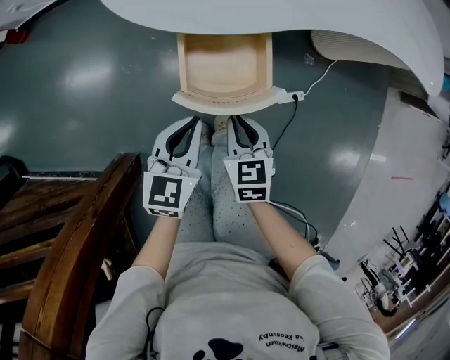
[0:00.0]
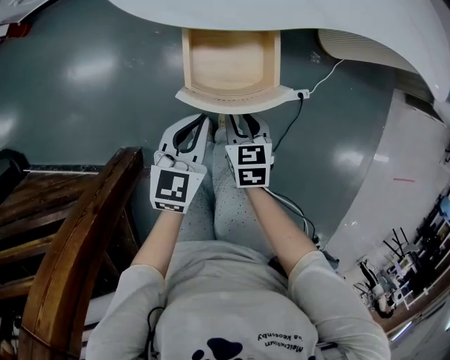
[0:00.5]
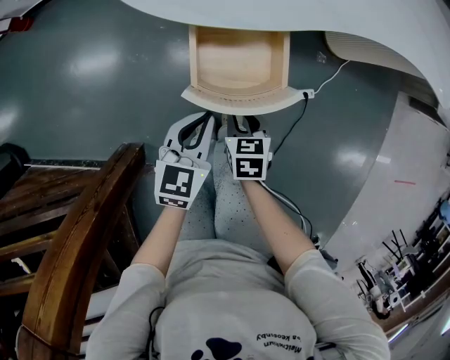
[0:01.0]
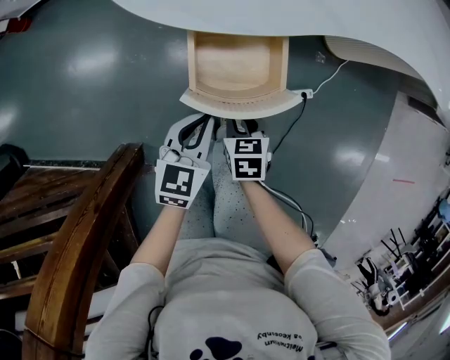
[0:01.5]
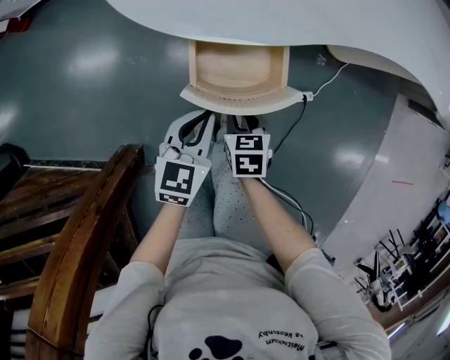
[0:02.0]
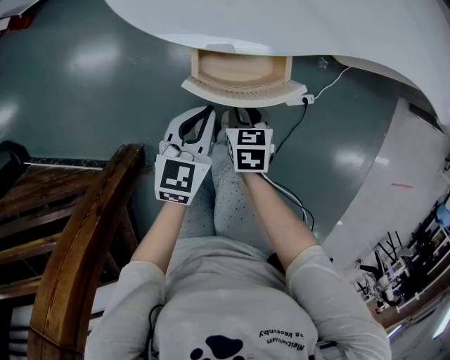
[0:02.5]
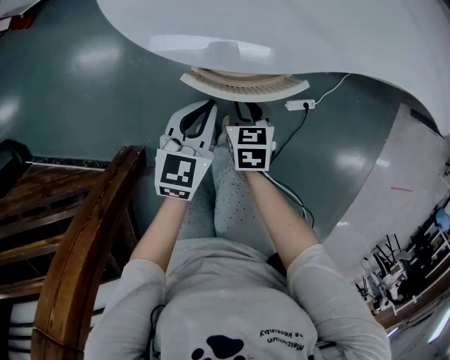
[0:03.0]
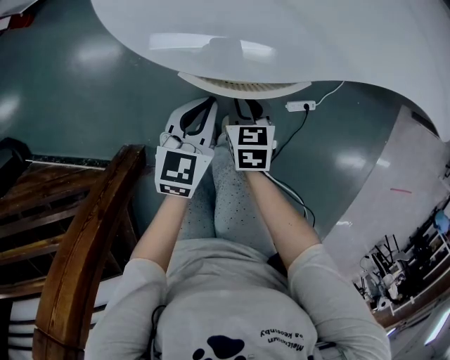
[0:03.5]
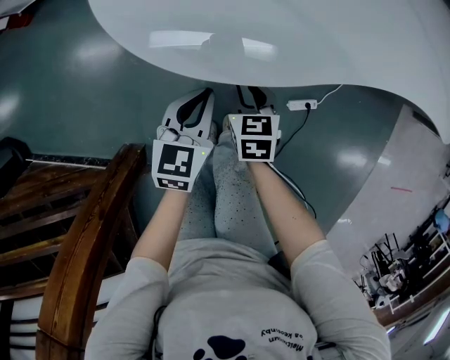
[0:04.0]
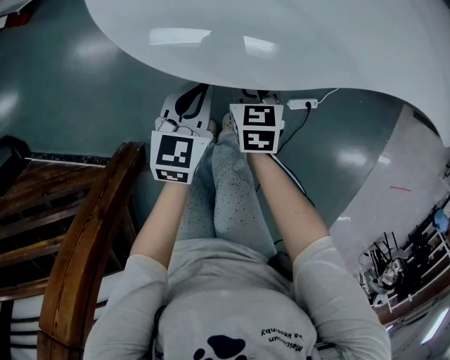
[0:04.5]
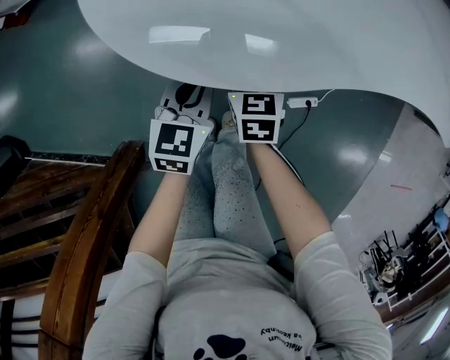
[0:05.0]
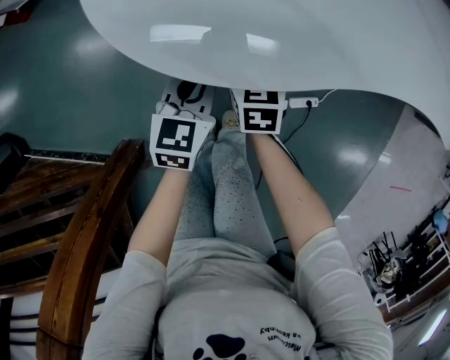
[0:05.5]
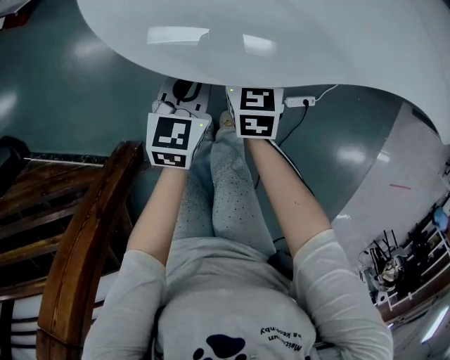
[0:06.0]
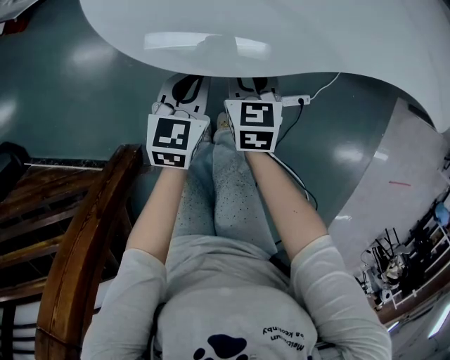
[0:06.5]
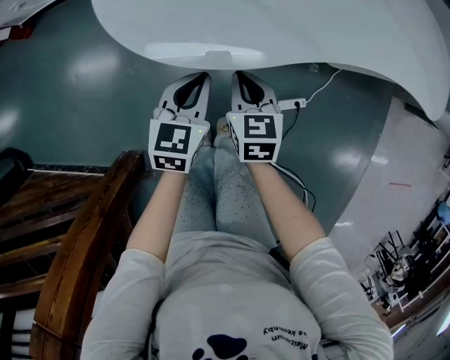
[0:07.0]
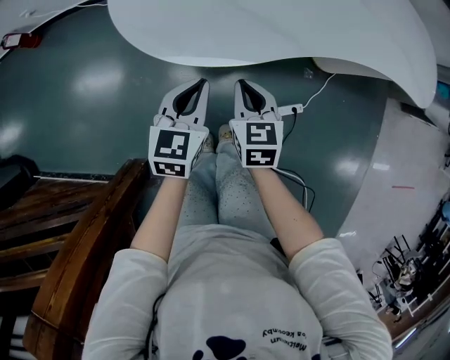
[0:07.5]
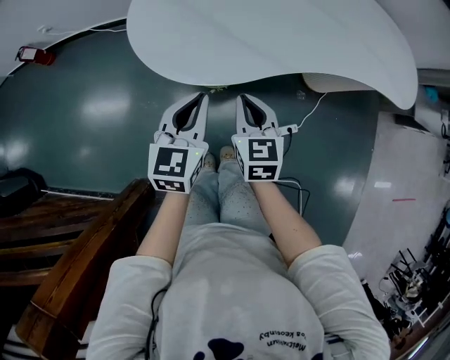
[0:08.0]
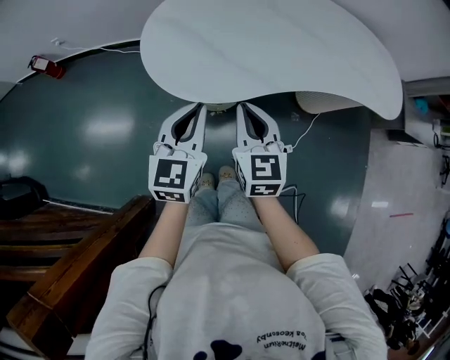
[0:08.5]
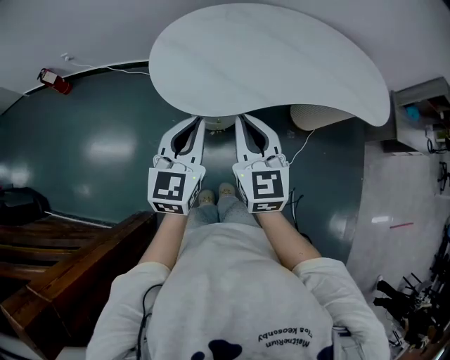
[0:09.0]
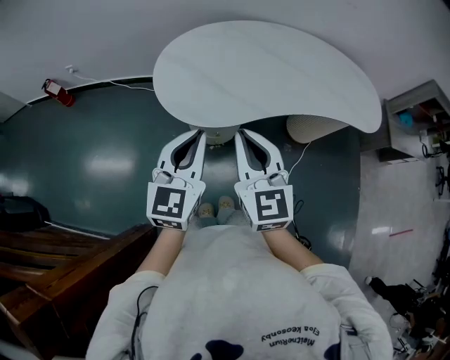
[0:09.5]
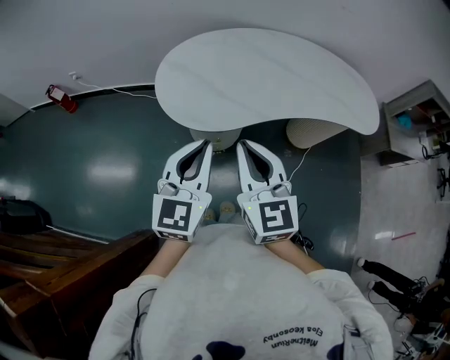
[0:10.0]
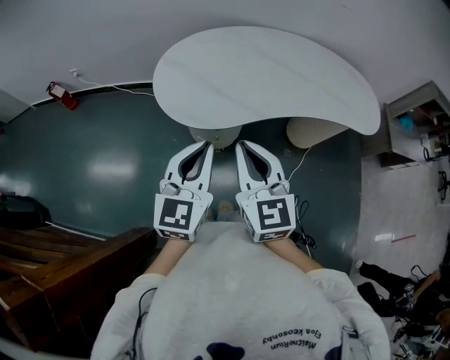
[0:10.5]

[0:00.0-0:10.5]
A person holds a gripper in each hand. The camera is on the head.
0:00.0 to 0:02.0: The right gripper goes approximately 10 cm downward, and opens. Meanwhile the left gripper changes place by about 5 cm.
0:02.0 to 0:04.0: The grippers both shift forward by approximately 10 cm.
0:04.0 to 0:06.5: The right gripper moves upward, approximately 5 cm.
0:06.5 to 0:08.5: Both grippers travel together upward, about 30 cm. The right gripper changes its angle by some 20 degrees, and closes up. The left gripper swivels some 20 degrees.
0:08.5 to 0:10.5: Both grippers move upward and backward, roughly 15 cm.

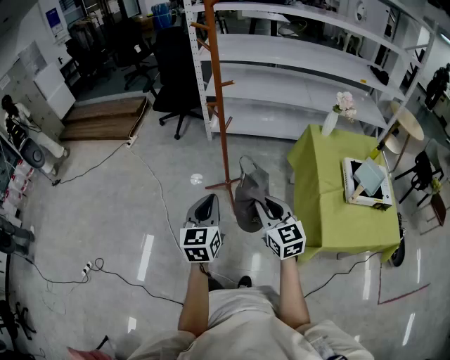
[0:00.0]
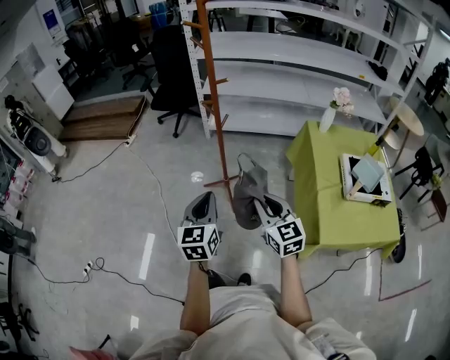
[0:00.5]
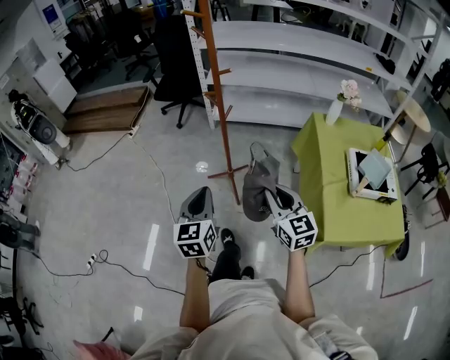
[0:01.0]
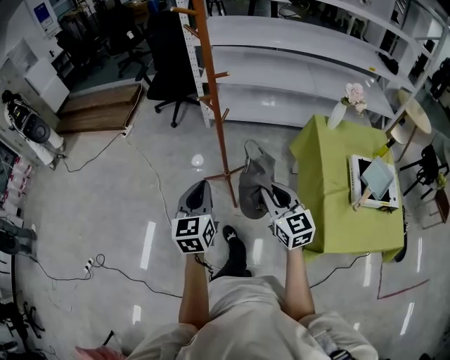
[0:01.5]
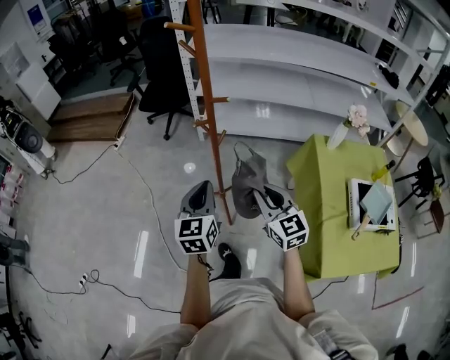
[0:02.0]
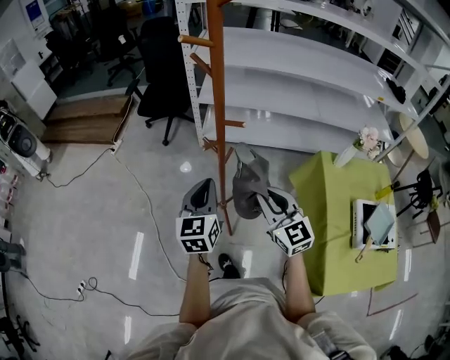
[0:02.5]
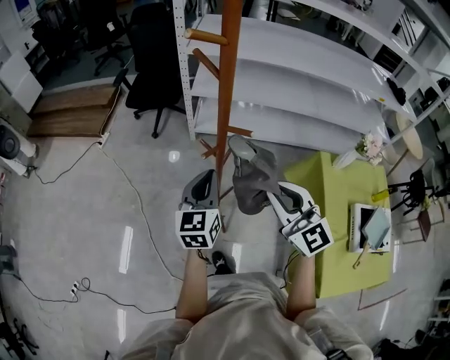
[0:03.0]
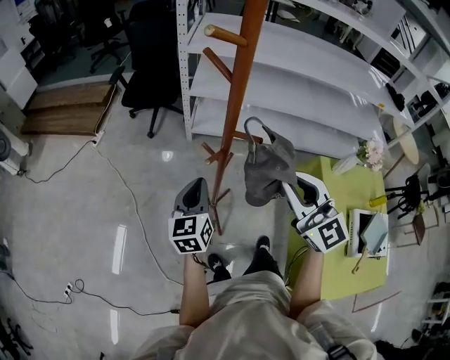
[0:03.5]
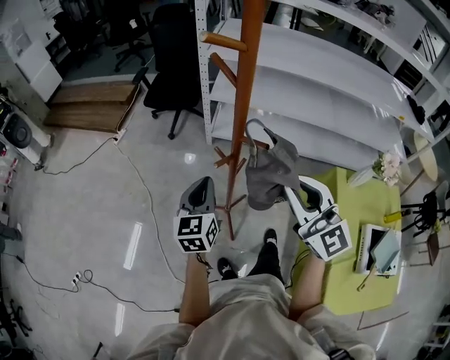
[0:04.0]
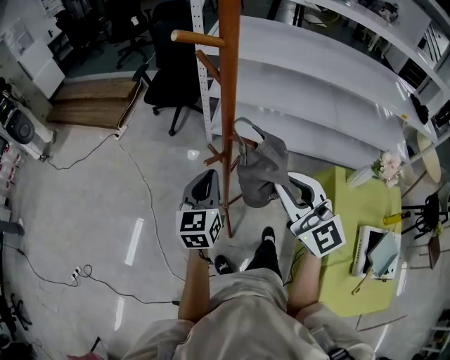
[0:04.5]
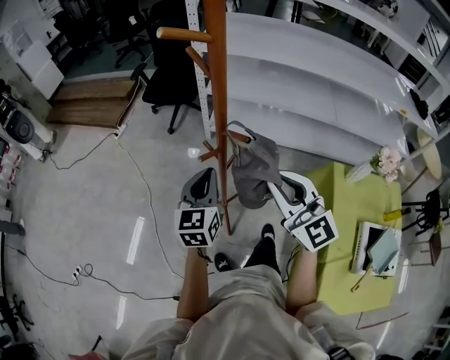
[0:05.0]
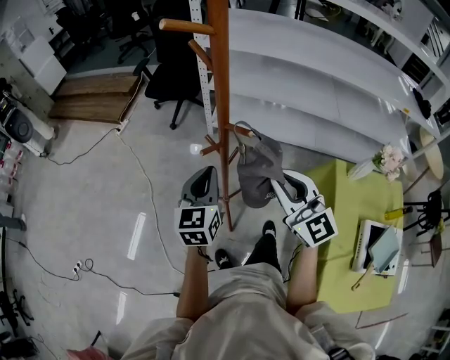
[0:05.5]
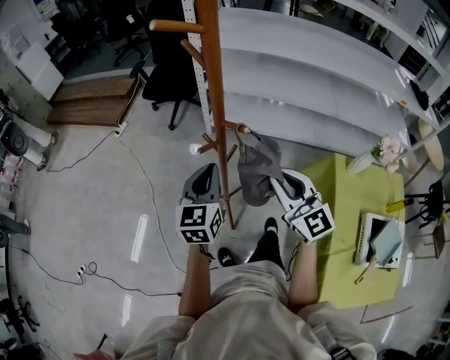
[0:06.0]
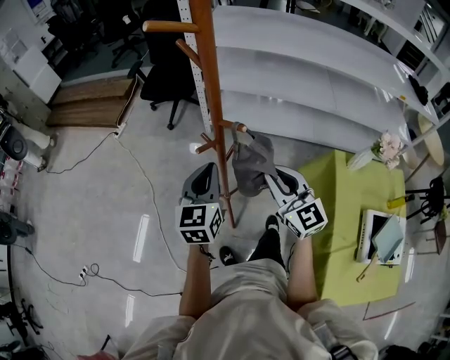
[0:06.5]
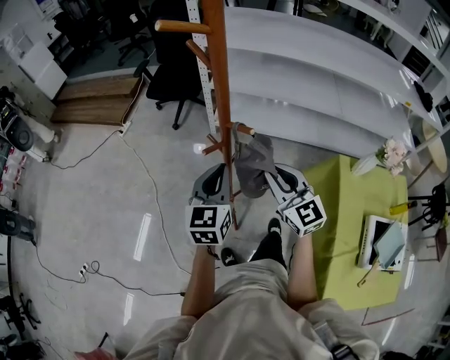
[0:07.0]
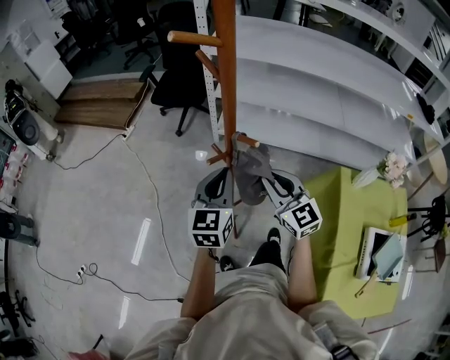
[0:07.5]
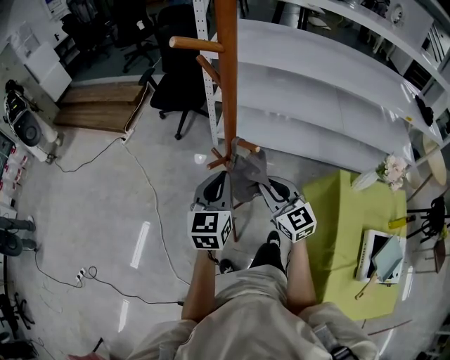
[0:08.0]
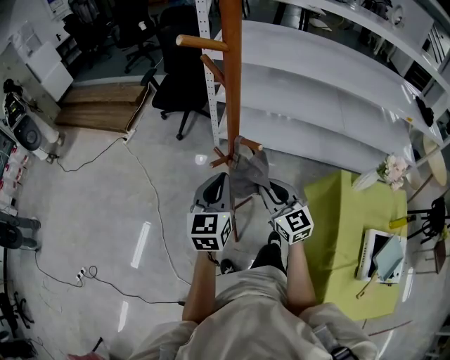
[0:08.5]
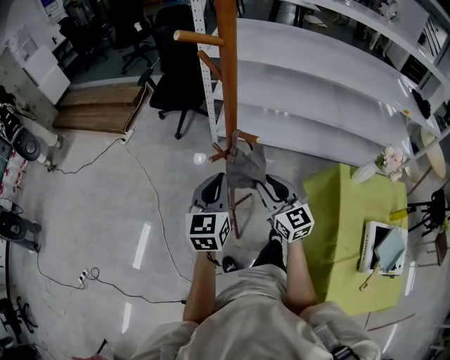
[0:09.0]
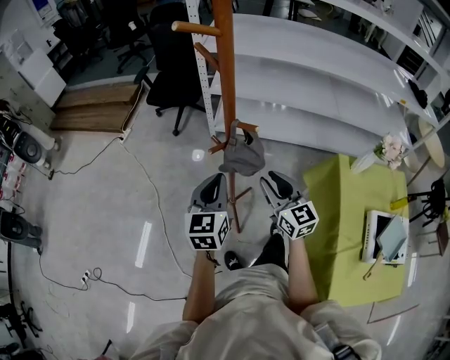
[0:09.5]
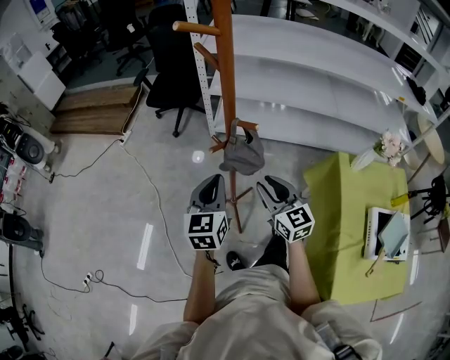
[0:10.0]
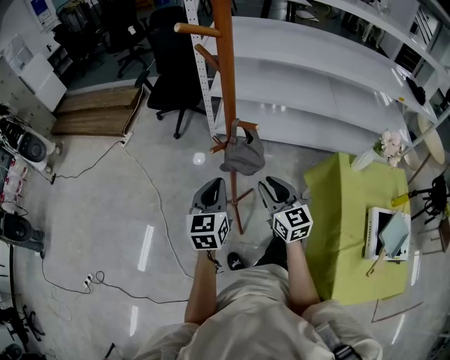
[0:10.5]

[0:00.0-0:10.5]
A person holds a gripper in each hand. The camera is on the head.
0:00.0 to 0:02.0: The two grippers go about 20 cm forward.
0:02.0 to 0:04.0: The right gripper goes about 20 cm upward and forward, and rotates approximately 30 degrees. Meanwhile the left gripper moves forward, roughly 20 cm.
0:04.0 to 0:06.5: The left gripper goes some 5 cm to the right, while the right gripper moves downward, roughly 15 cm.
0:06.5 to 0:08.5: The right gripper goes roughly 5 cm downward.
0:08.5 to 0:10.5: The left gripper moves some 5 cm.

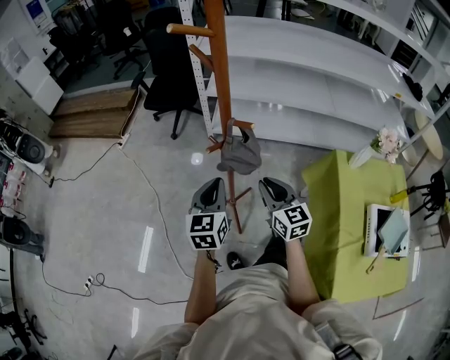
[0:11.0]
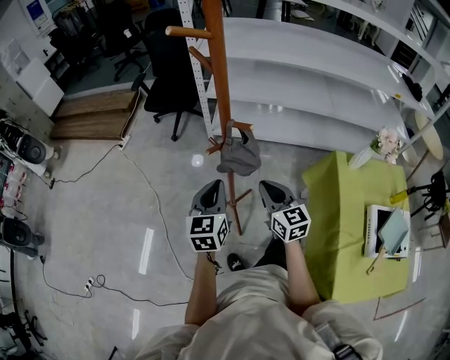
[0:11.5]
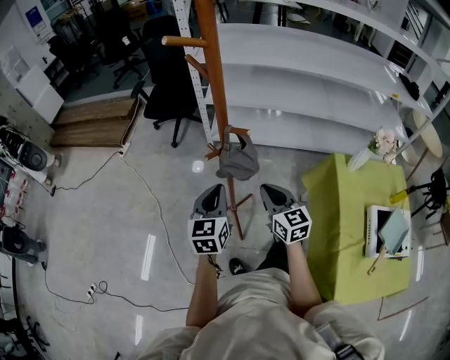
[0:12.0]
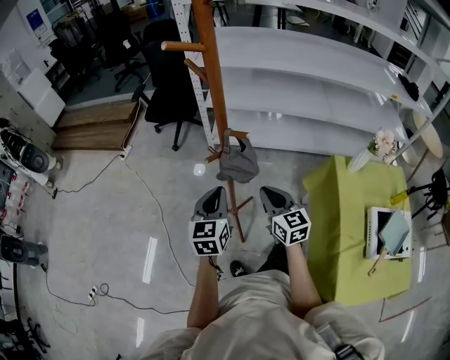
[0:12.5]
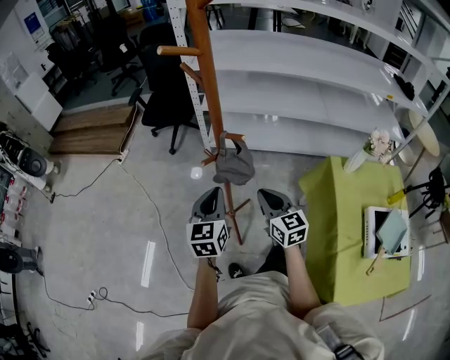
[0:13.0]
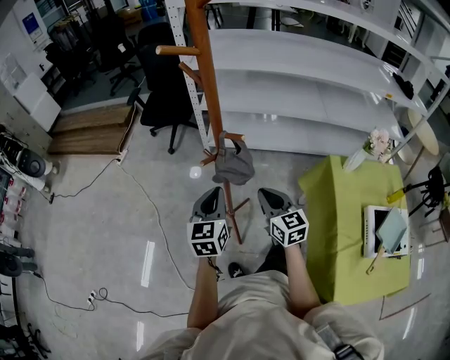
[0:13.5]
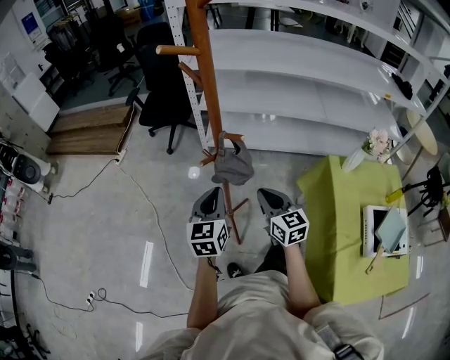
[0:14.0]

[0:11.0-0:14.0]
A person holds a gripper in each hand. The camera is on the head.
0:11.0 to 0:12.5: Both grippers stay about where they are.
0:12.5 to 0:14.0: Both grippers stay about where they are.

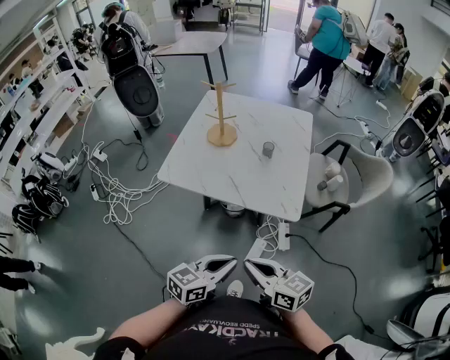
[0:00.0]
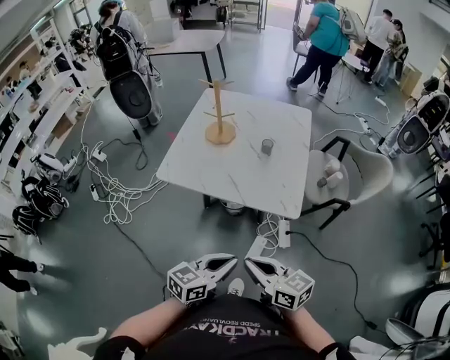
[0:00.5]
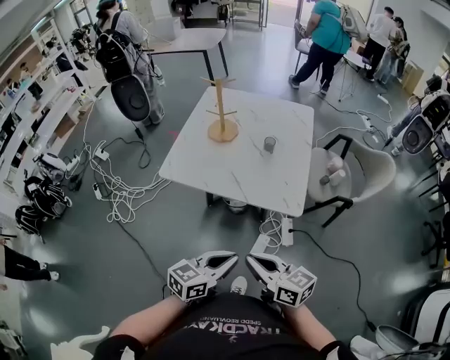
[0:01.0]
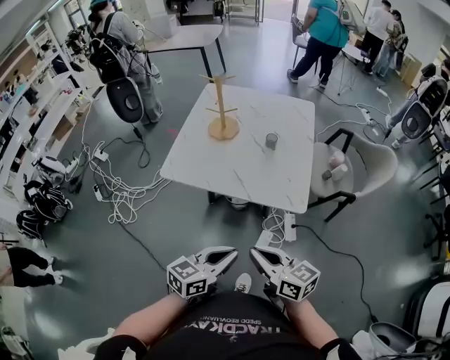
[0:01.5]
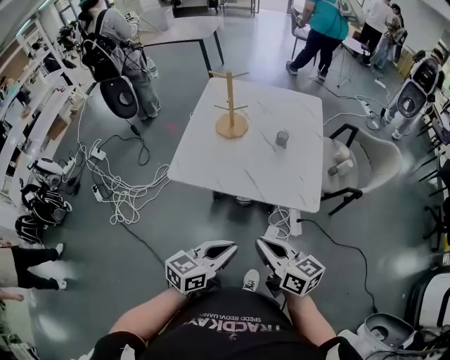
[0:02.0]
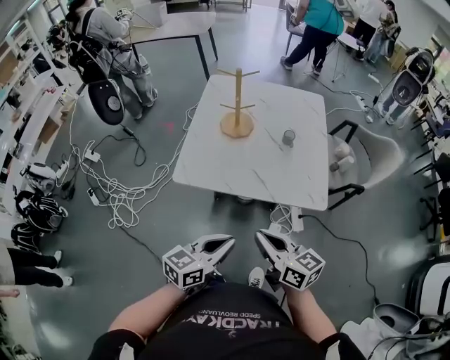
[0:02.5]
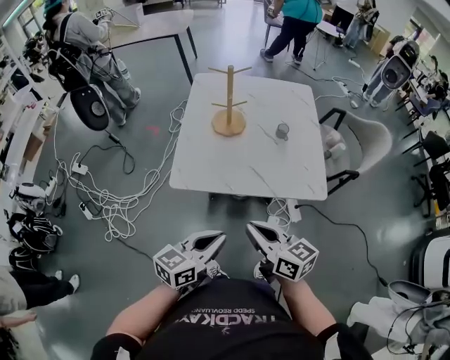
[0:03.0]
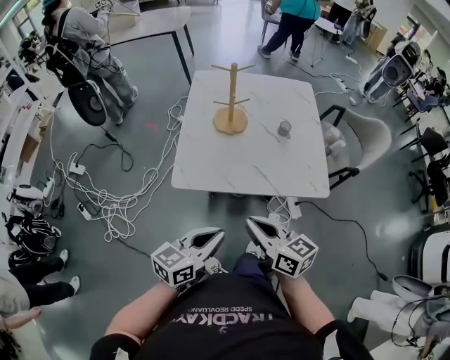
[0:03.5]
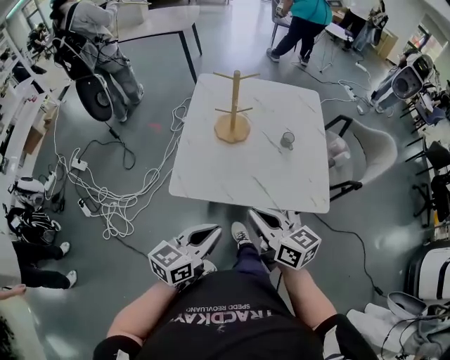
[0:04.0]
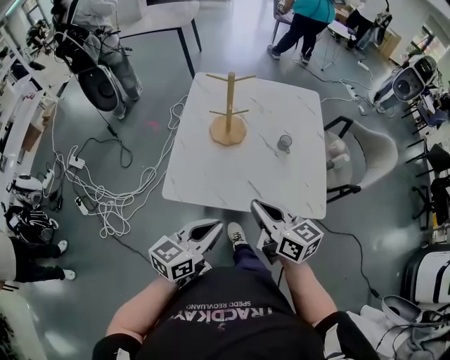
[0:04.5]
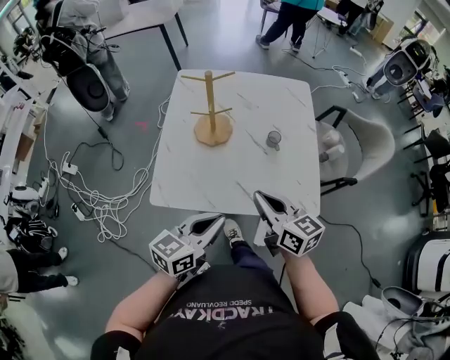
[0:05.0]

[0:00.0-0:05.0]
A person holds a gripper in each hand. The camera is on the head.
0:00.0 to 0:02.5: Both grippers travel together to the left and forward, roughly 15 cm.
0:02.5 to 0:05.0: The two grippers go about 20 cm forward.
